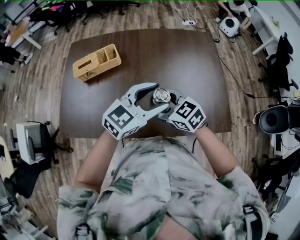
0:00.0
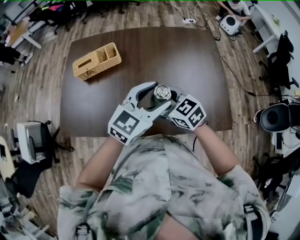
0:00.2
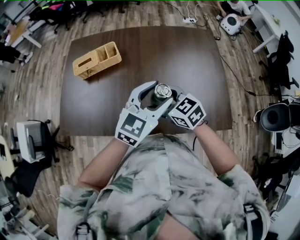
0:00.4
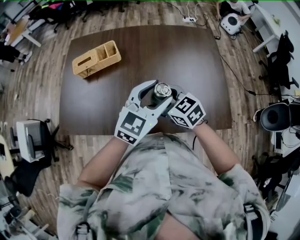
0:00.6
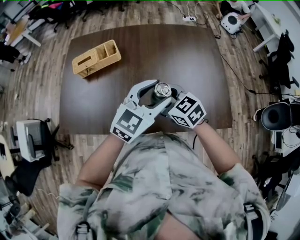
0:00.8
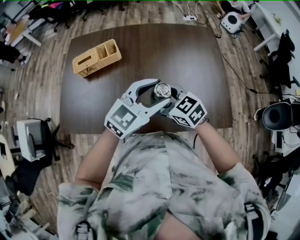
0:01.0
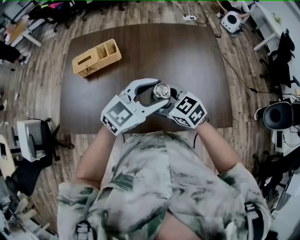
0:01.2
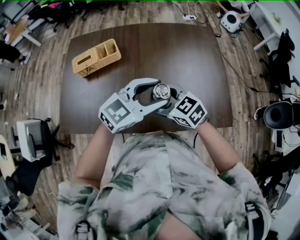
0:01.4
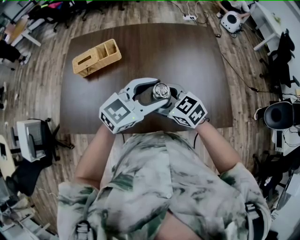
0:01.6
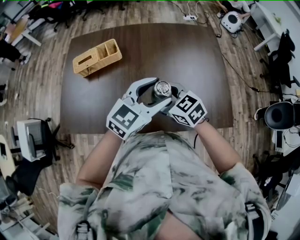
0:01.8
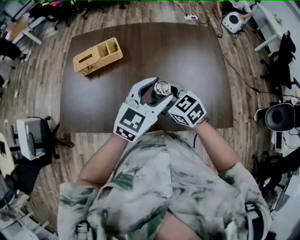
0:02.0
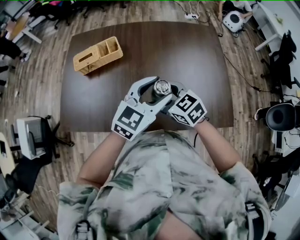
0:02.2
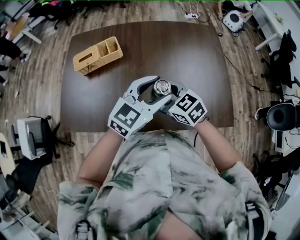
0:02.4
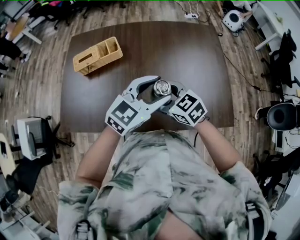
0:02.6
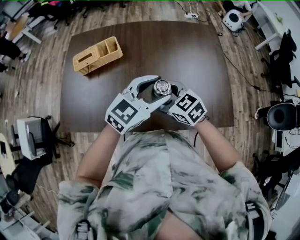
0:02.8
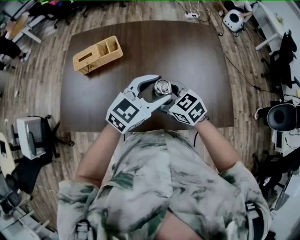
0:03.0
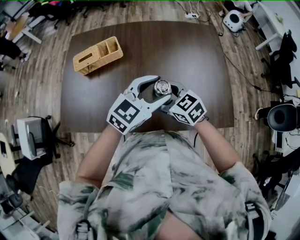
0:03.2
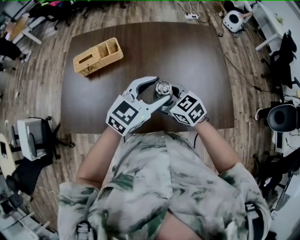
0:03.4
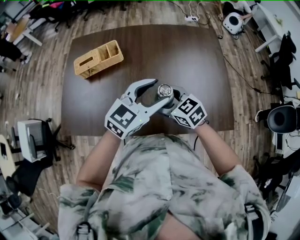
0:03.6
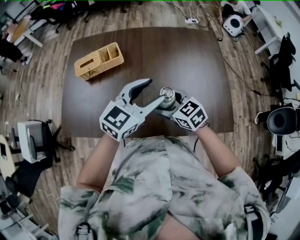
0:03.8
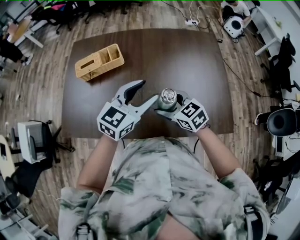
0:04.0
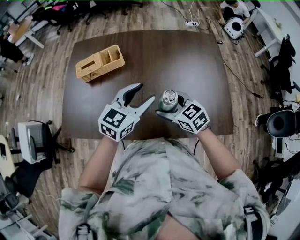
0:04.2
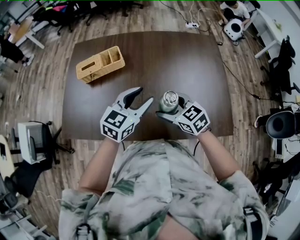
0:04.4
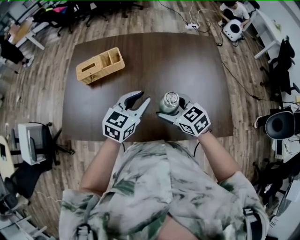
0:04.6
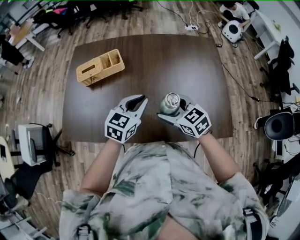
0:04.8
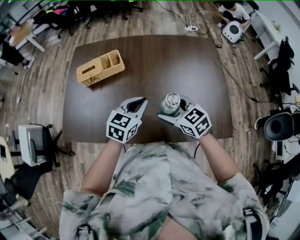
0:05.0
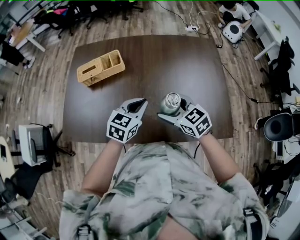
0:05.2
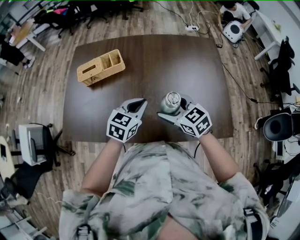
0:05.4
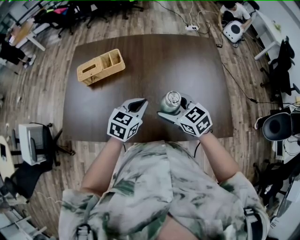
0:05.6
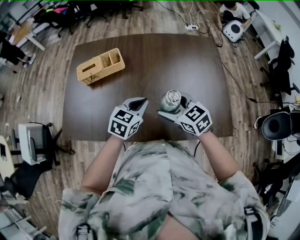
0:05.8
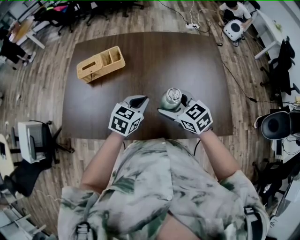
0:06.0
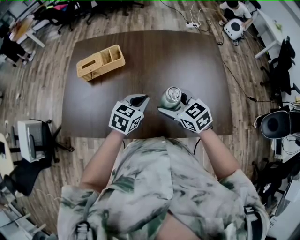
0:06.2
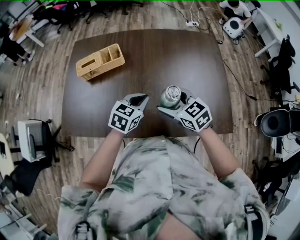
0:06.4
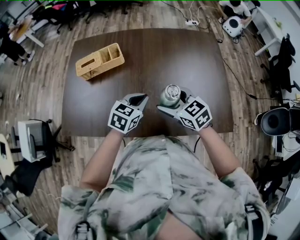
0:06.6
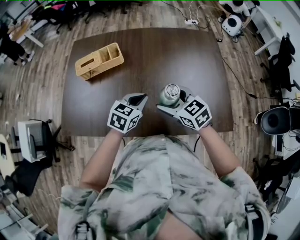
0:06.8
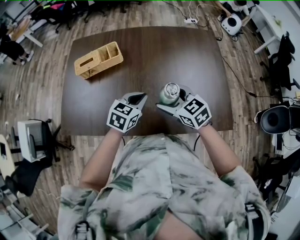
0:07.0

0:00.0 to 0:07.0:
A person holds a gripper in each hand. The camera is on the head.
0:00.0 to 0:01.4: The grippers move only a little.
0:02.8 to 0:04.2: The left gripper heads to the left, covering some 5 cm.
0:04.2 to 0:05.6: The left gripper moves downward, about 10 cm, and closes.
0:05.6 to 0:07.0: The grippers stay close to where they were, moving slightly.

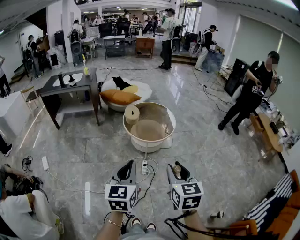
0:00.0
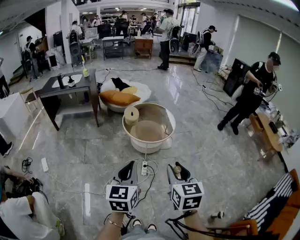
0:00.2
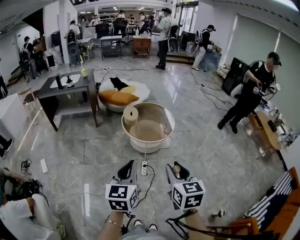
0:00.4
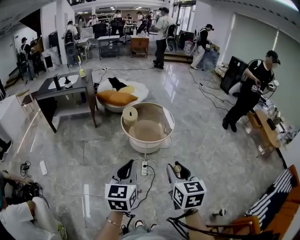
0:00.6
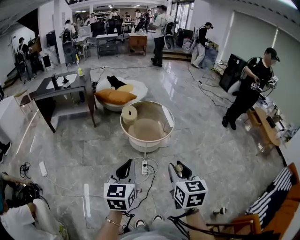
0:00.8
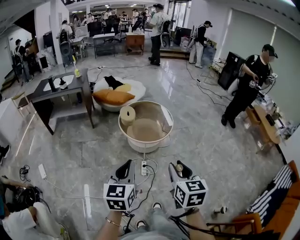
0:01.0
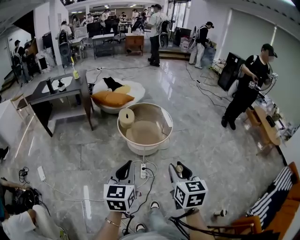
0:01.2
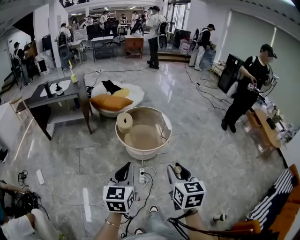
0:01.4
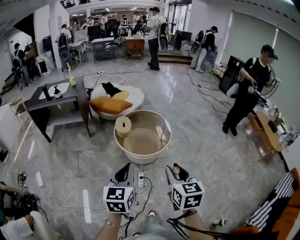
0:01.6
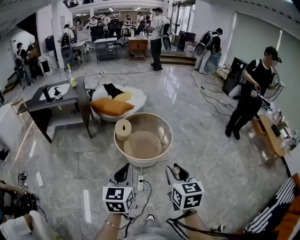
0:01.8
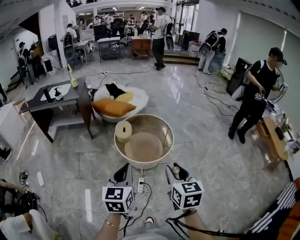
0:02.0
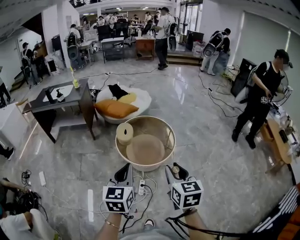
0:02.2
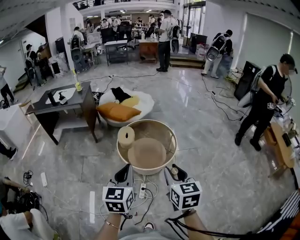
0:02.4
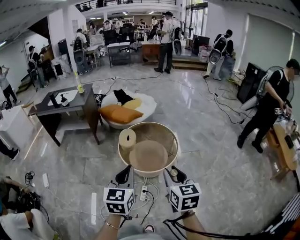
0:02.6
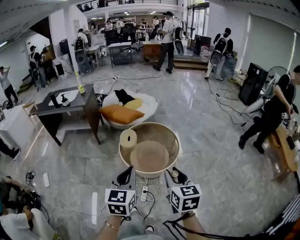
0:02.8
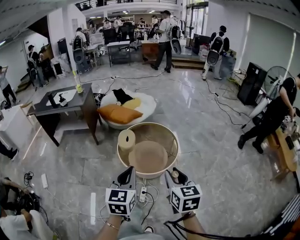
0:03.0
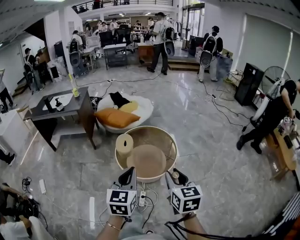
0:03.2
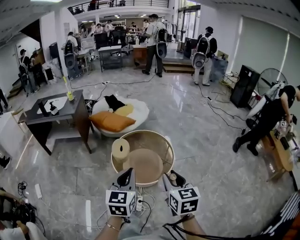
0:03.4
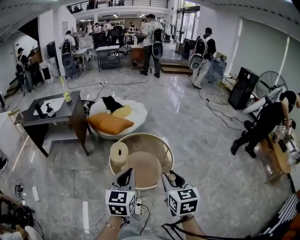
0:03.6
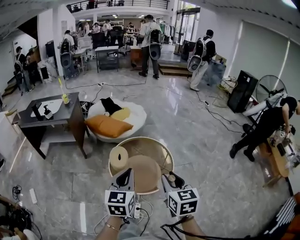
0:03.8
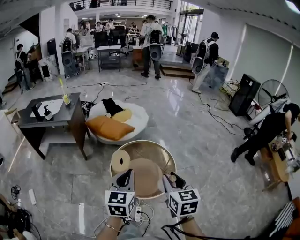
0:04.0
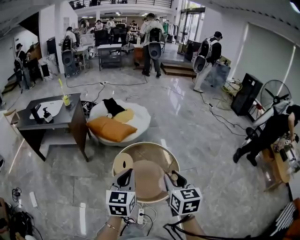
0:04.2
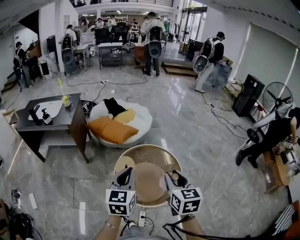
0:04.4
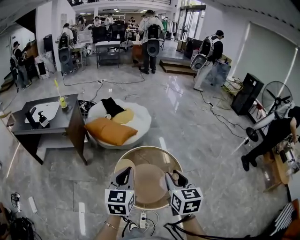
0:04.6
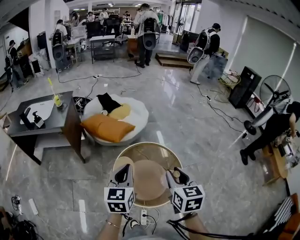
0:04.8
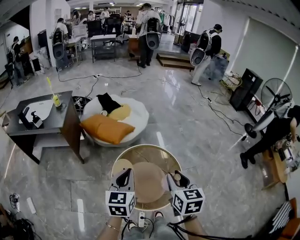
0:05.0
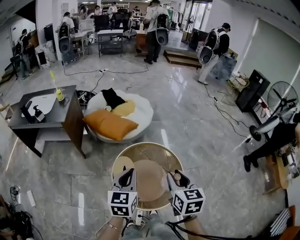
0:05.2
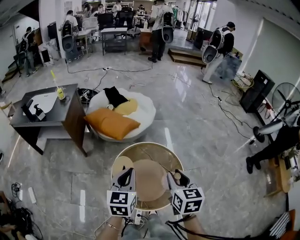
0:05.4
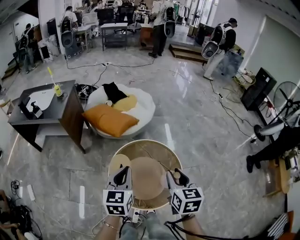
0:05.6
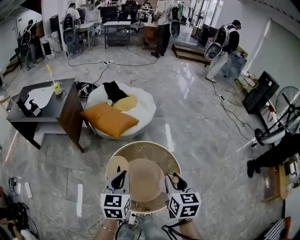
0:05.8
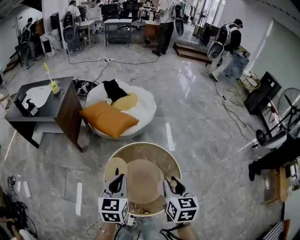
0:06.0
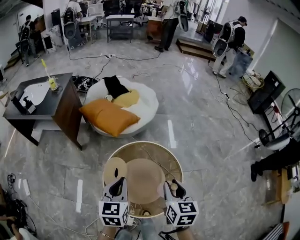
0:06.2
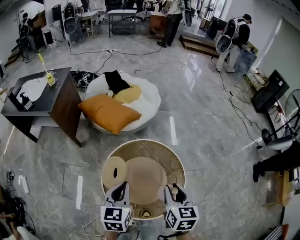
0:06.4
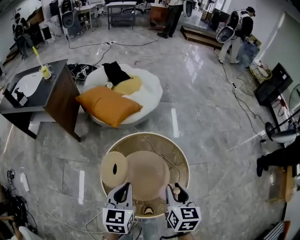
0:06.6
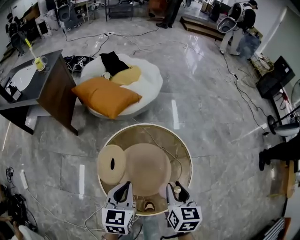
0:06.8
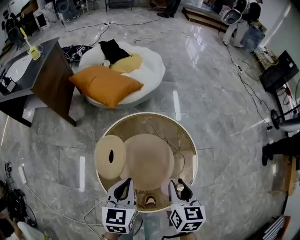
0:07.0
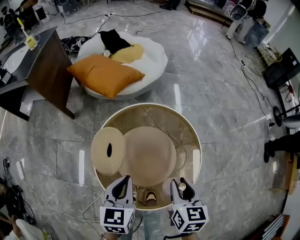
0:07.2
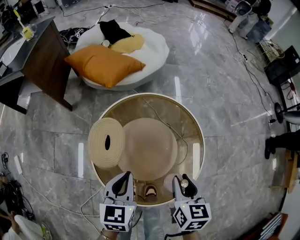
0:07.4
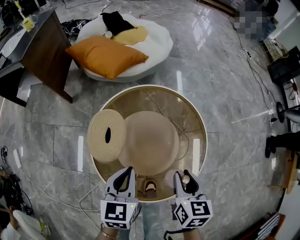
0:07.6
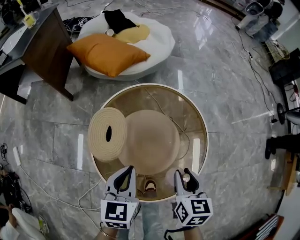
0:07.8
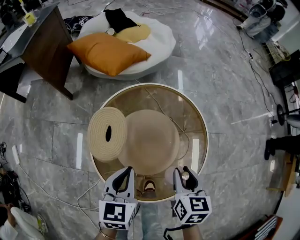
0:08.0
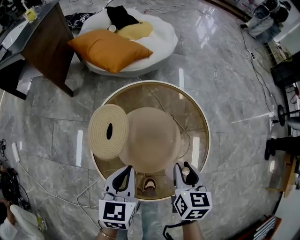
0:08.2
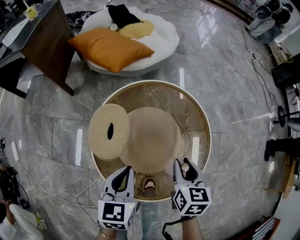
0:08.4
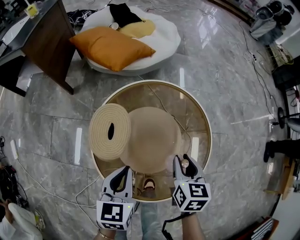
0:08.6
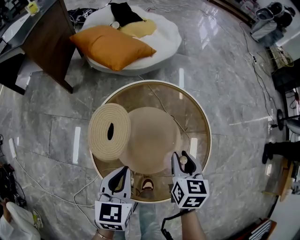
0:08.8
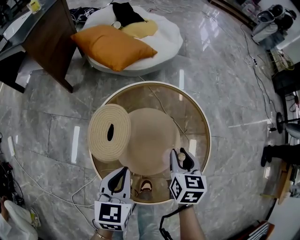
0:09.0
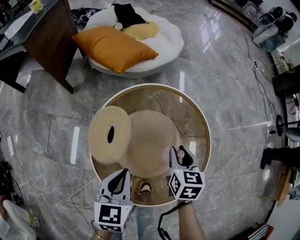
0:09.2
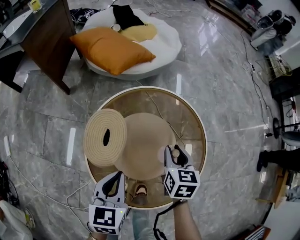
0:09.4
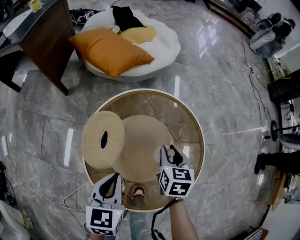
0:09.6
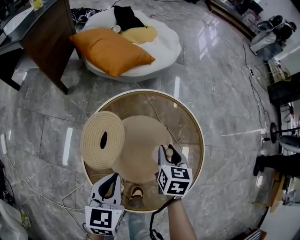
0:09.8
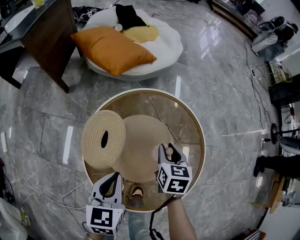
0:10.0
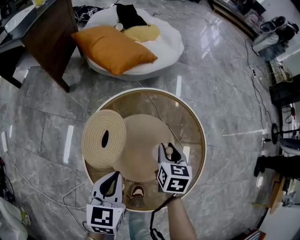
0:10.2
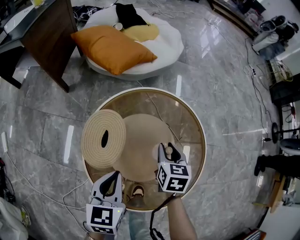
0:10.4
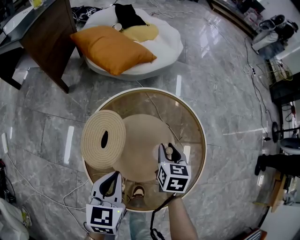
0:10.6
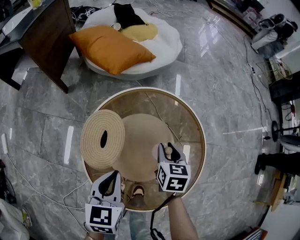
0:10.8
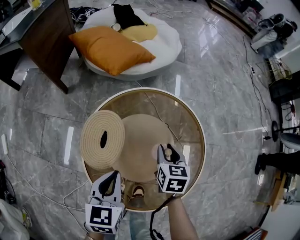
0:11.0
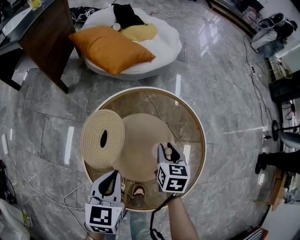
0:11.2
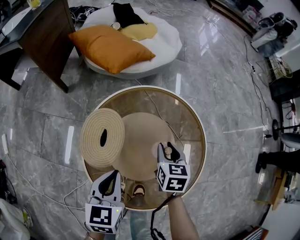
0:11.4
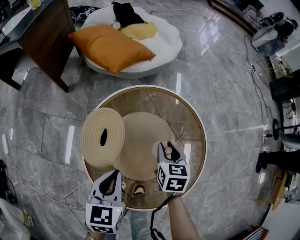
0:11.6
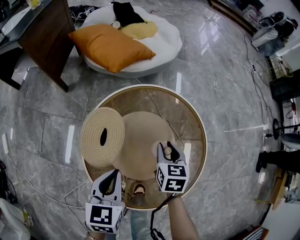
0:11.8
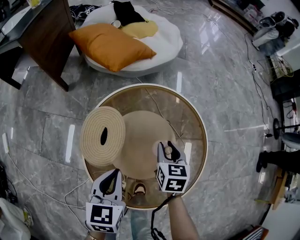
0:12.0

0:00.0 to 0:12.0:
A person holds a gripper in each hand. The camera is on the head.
0:00.0 to 0:01.6: Both grippers move forward, some 15 cm.
0:01.6 to 0:03.0: The two grippers go roughly 20 cm forward and to the right.
0:03.0 to 0:04.4: Both grippers travel together forward, some 30 cm.
0:04.4 to 0:06.0: The grippers both shift forward and downward by approximately 20 cm.
0:06.0 to 0:07.6: Both grippers move downward, roughly 30 cm.
0:07.6 to 0:09.0: The right gripper heads forward and downward, covering roughly 10 cm.
0:09.0 to 0:10.4: The right gripper shifts roughly 5 cm forward.
0:10.4 to 0:12.0: Neither gripper changes place.

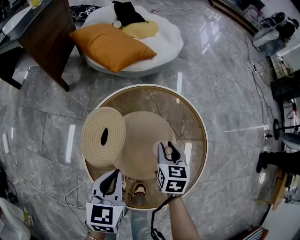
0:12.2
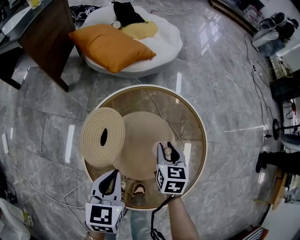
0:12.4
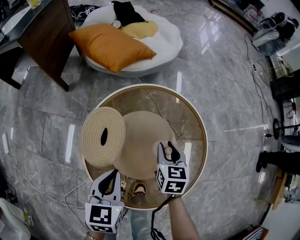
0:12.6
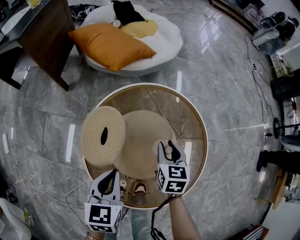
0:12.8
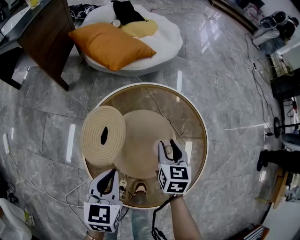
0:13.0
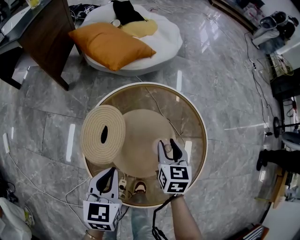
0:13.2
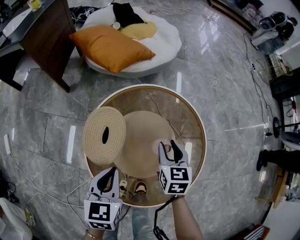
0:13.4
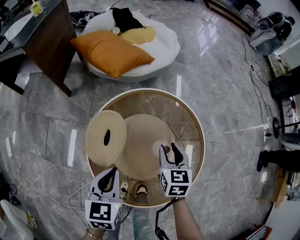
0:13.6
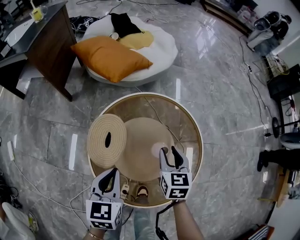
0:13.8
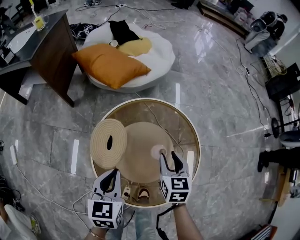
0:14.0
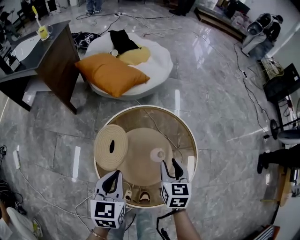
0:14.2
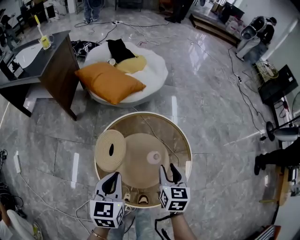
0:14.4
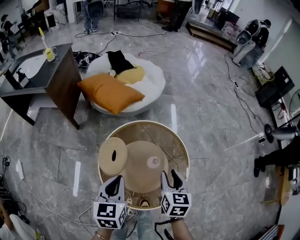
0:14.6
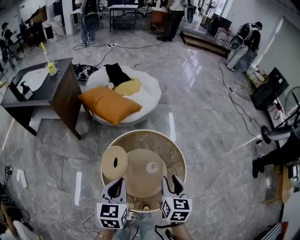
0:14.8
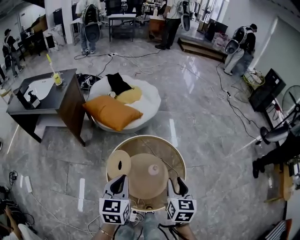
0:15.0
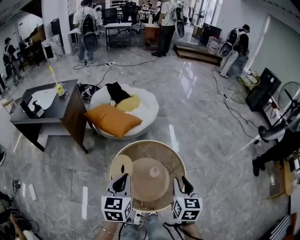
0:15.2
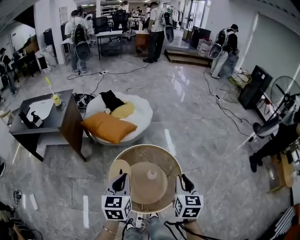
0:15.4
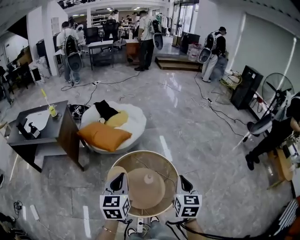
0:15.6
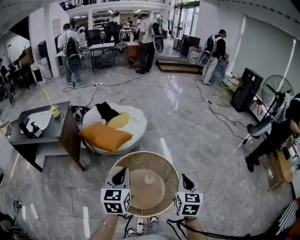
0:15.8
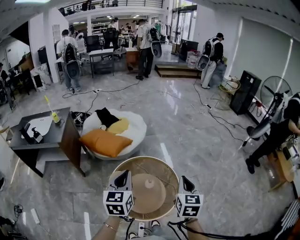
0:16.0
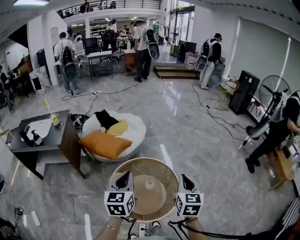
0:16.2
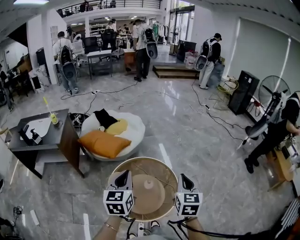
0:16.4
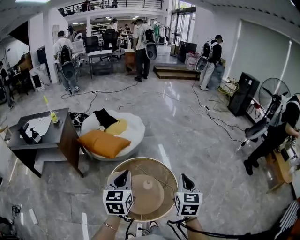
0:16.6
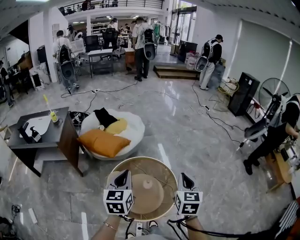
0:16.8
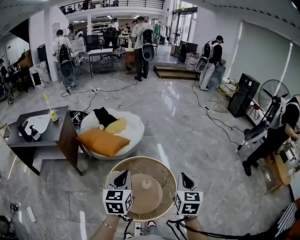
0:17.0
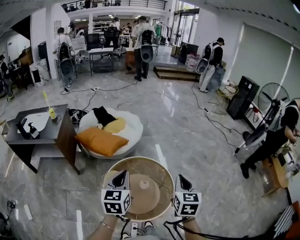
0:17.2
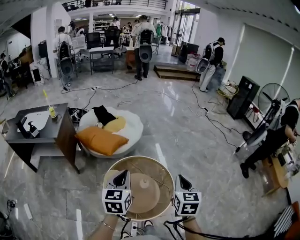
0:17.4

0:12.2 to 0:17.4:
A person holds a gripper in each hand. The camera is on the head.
0:12.2 to 0:14.0: The two grippers go some 5 cm upward.
0:14.0 to 0:15.6: The left gripper travels upward by roughly 30 cm; the right gripper heads upward and backward, covering some 40 cm, turns by about 20 degrees, and closes its fingers.
0:15.6 to 0:17.4: The grippers stay close to where they were, moving slightly.
